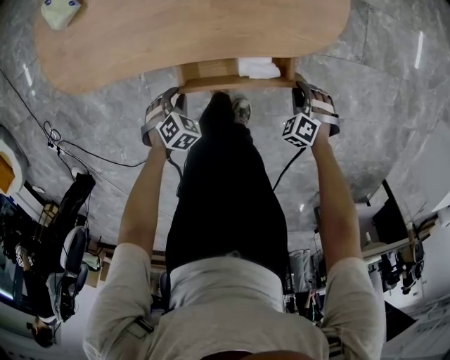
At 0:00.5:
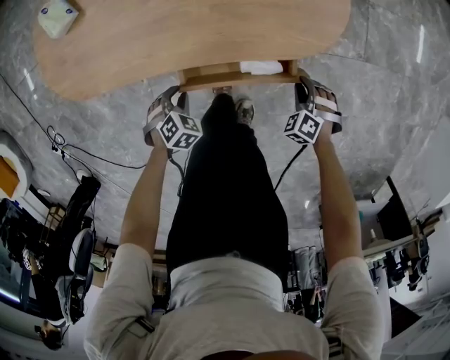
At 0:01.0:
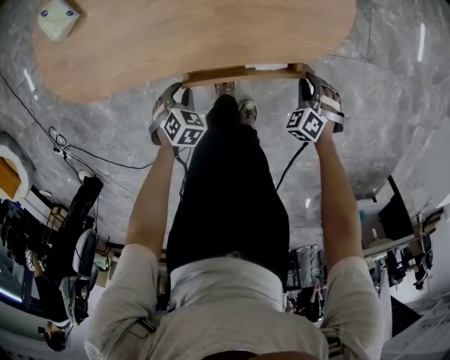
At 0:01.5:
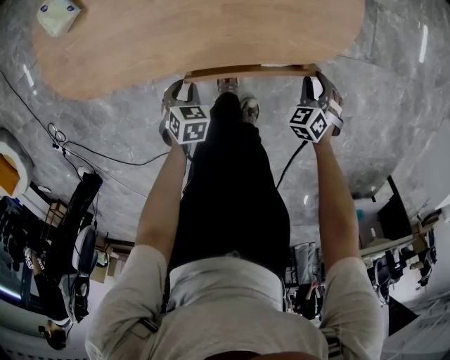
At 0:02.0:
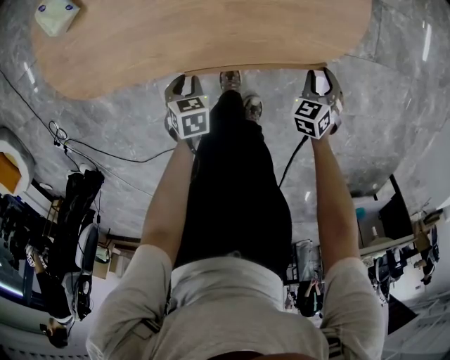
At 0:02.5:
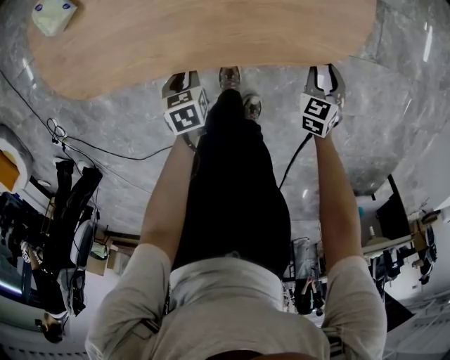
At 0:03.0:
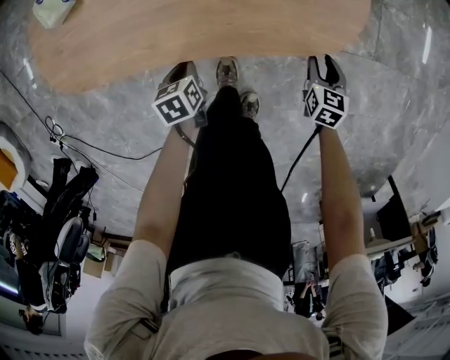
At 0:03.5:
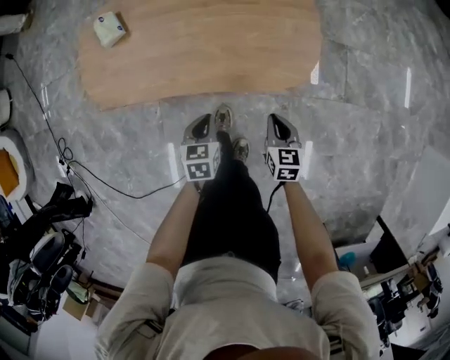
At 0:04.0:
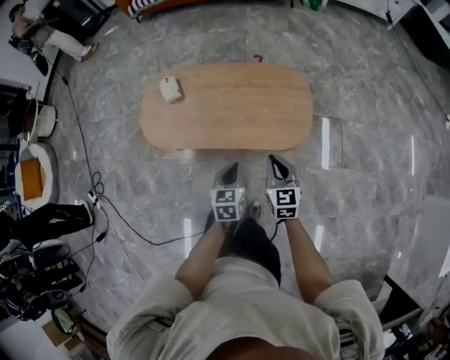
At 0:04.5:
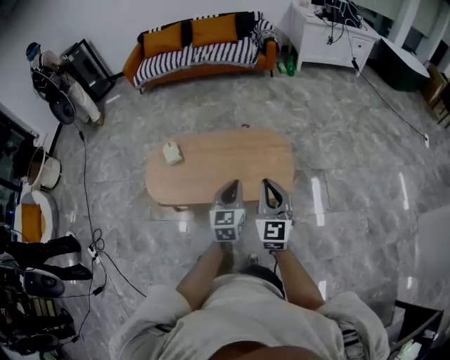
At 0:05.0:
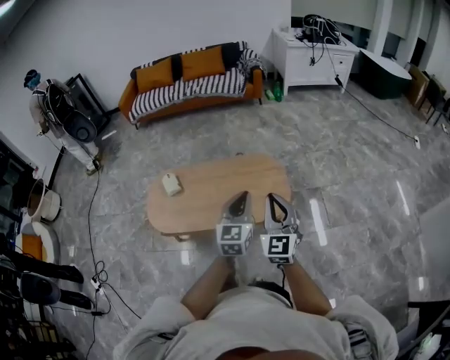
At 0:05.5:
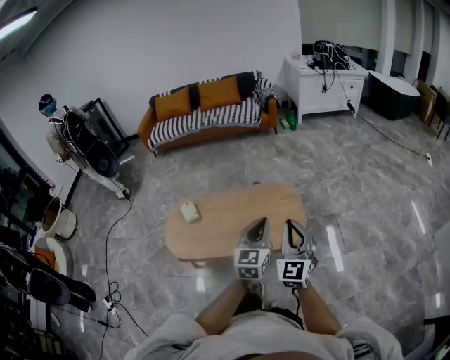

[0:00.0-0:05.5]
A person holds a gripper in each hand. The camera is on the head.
0:00.0 to 0:02.0: The left gripper ends up roughly 5 cm from where it was, and rolls counterclockwise, seen from behind, by roughly 50 degrees. Meanwhile the right gripper changes place by roughly 10 cm, and twists approximately 40 degrees clockwise, seen from behind.
0:02.0 to 0:03.5: The two grippers go roughly 20 cm upward. The left gripper changes its angle by some 20 degrees, and closes its fingers; the right gripper swivels approximately 40 degrees, and closes up.
0:03.5 to 0:05.5: The two grippers go some 50 cm upward. The right gripper angles its fingers upward, by roughly 50 degrees. The left gripper tips its fingers upward by some 50 degrees.

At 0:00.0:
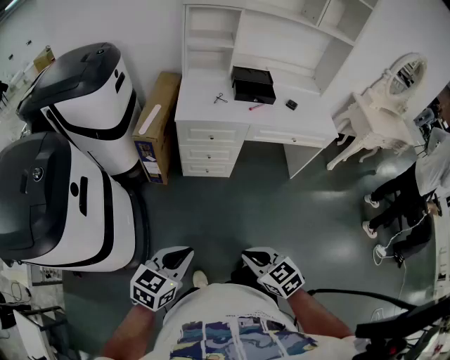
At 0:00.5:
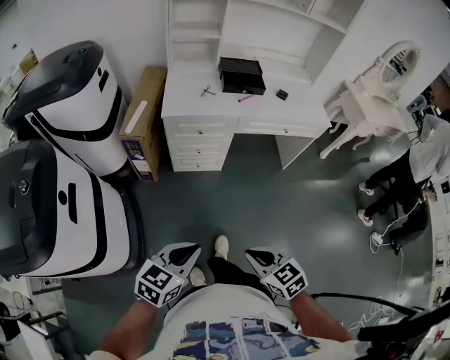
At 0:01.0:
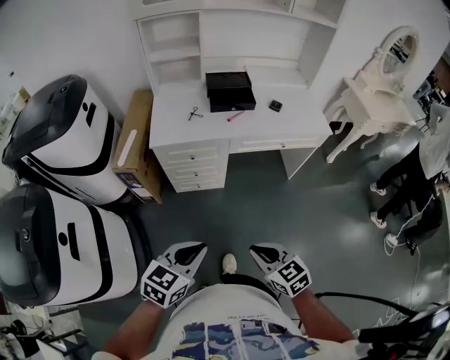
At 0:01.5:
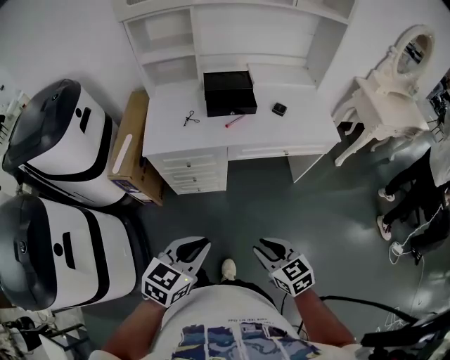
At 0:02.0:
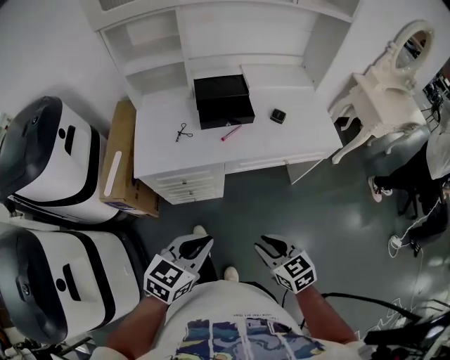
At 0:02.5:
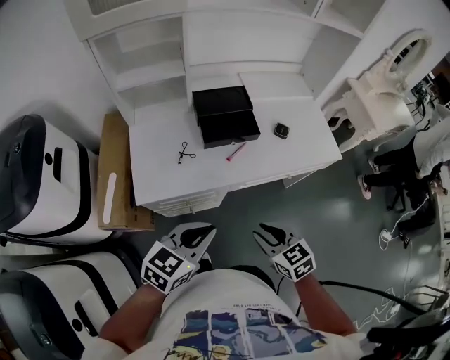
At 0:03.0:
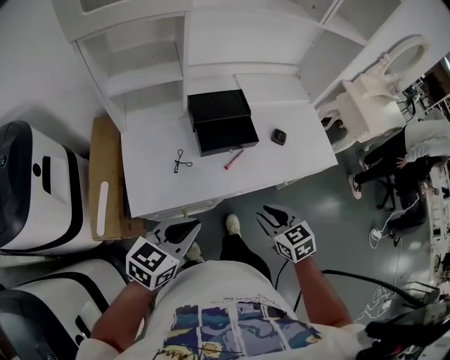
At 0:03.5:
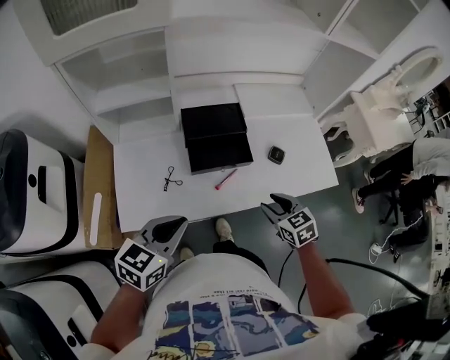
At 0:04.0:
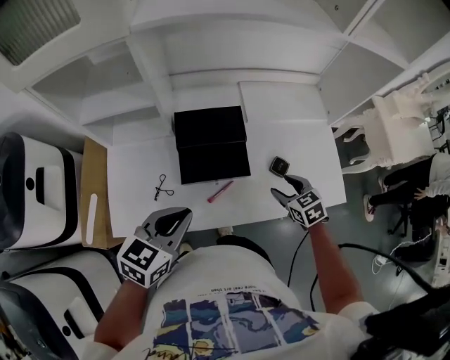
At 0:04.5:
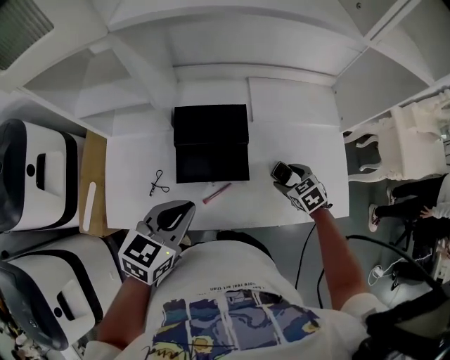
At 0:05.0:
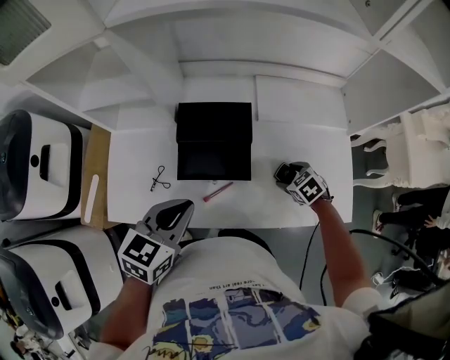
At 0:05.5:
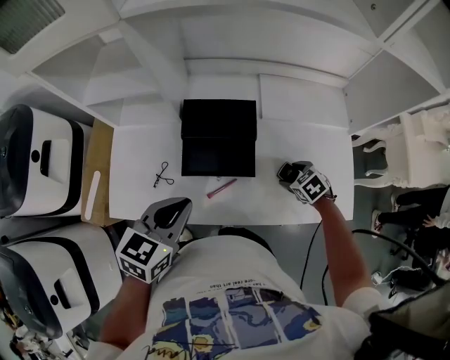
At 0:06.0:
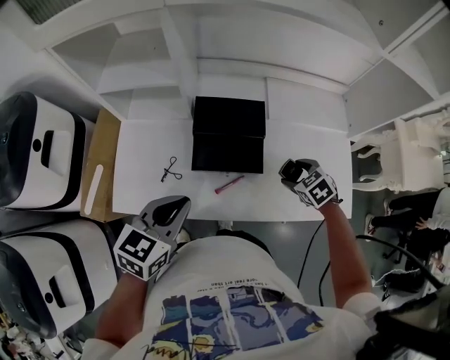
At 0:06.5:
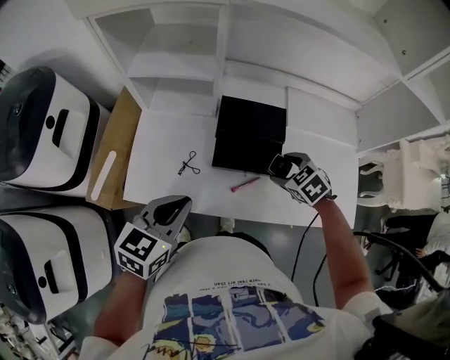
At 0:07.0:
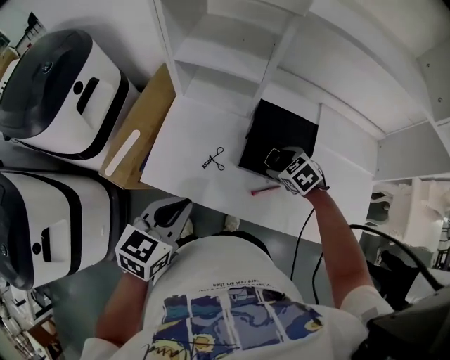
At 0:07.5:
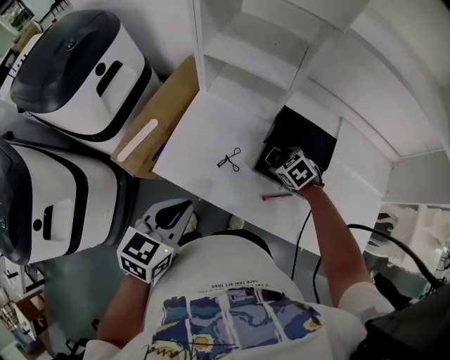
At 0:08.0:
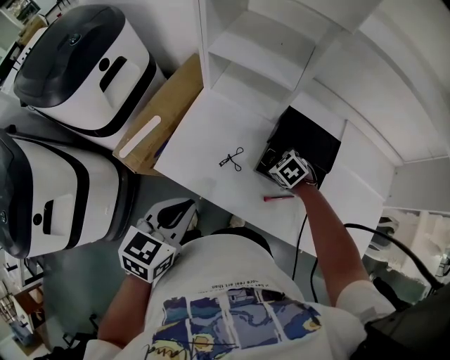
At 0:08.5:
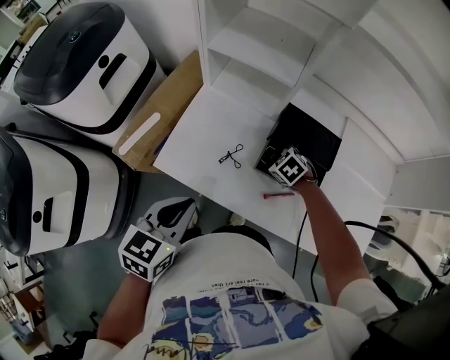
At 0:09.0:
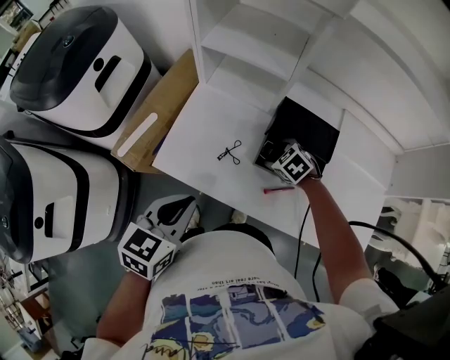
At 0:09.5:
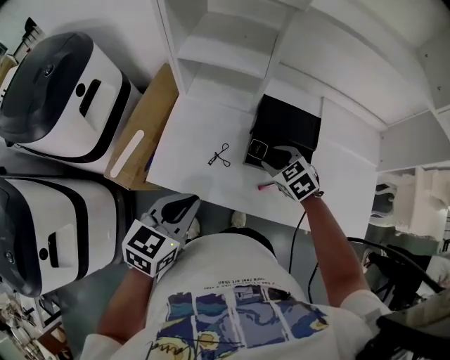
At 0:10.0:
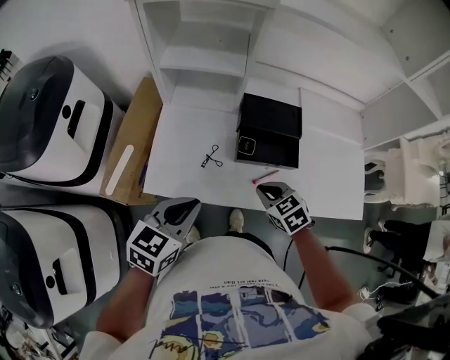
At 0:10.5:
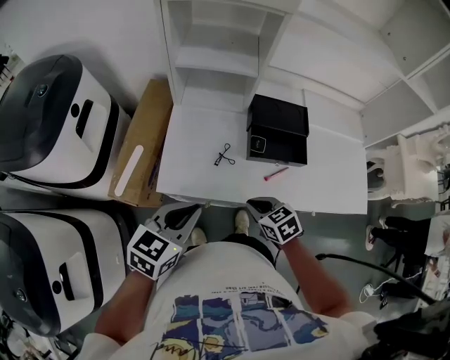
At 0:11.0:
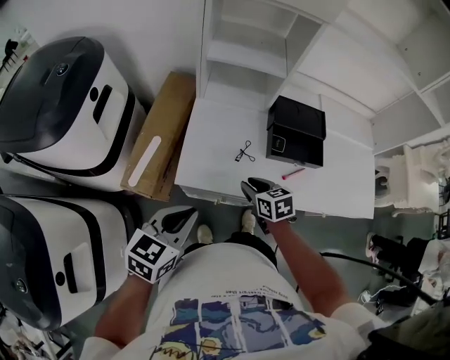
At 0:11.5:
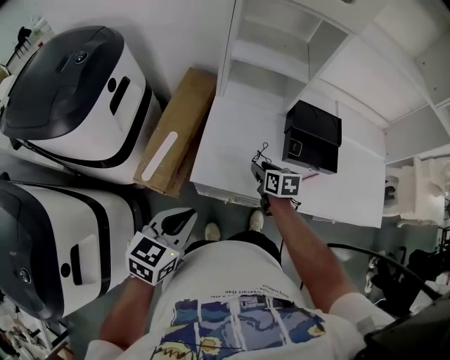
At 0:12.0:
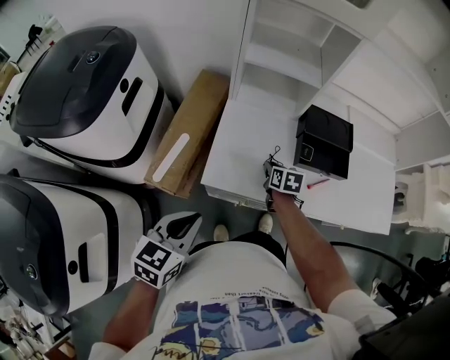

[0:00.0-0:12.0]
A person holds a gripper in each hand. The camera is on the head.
0:00.0 to 0:02.0: The grippers both shift forward and to the right by some 35 cm.
0:02.0 to 0:04.0: The grippers both shift forward by roughly 40 cm. The right gripper opens up.
0:04.0 to 0:06.0: The right gripper moves forward, some 5 cm, travels downward and back again, some 10 cm each way, and rotates approximately 20 degrees.
0:06.0 to 0:08.0: The right gripper moves roughly 30 cm, and changes its angle by some 30 degrees. Meanwhile the left gripper moves about 15 cm, and changes its angle by some 30 degrees.
0:08.0 to 0:10.0: The right gripper changes place by approximately 20 cm, swivels approximately 30 degrees, and closes up. Meanwhile the left gripper rotates about 20 degrees.
0:10.0 to 0:12.0: The right gripper heads to the left, downward and forward, covering about 20 cm, and turns by some 40 degrees. The left gripper heads to the left and backward, covering roughly 20 cm.

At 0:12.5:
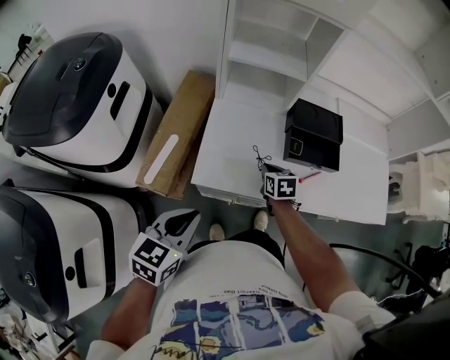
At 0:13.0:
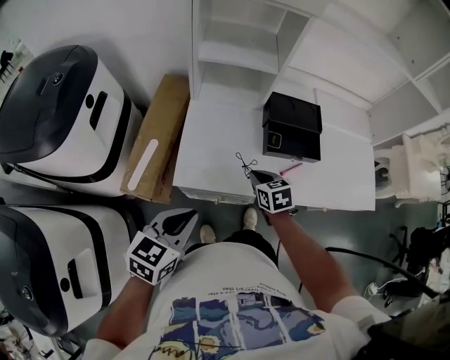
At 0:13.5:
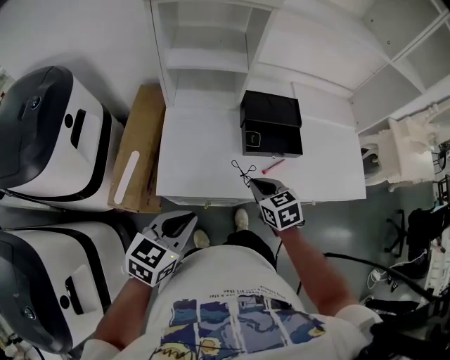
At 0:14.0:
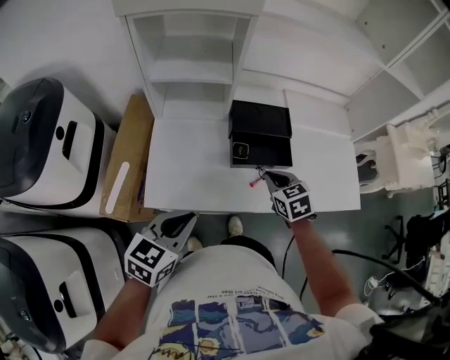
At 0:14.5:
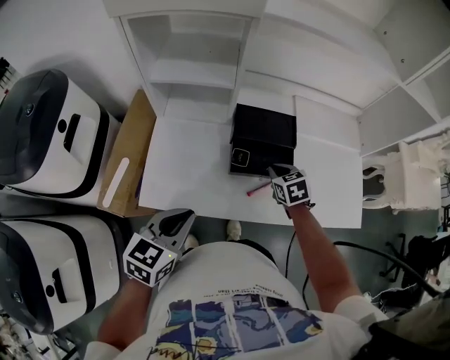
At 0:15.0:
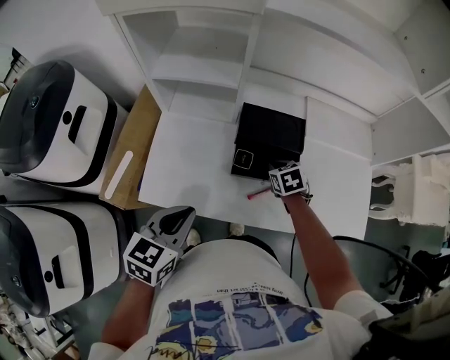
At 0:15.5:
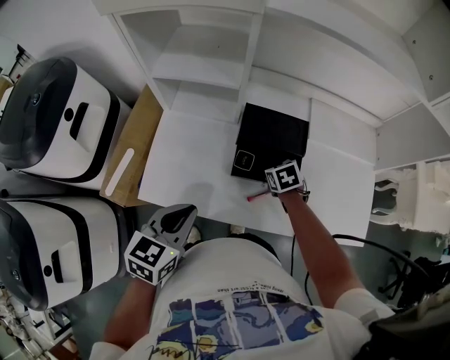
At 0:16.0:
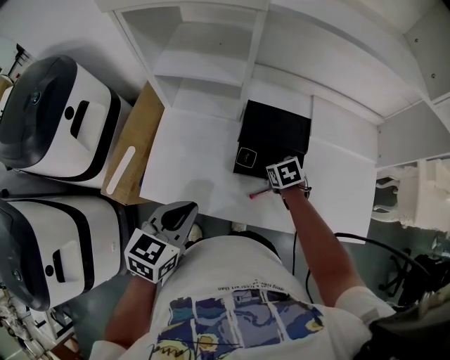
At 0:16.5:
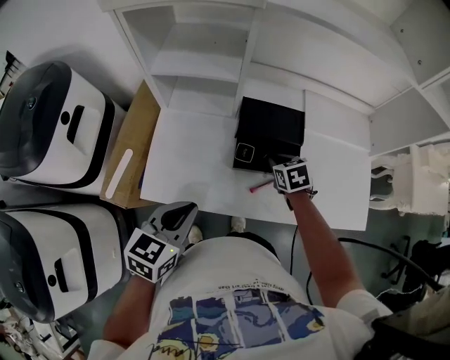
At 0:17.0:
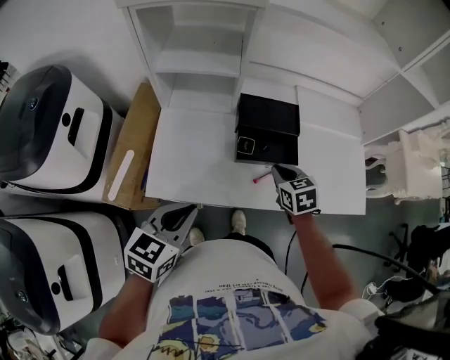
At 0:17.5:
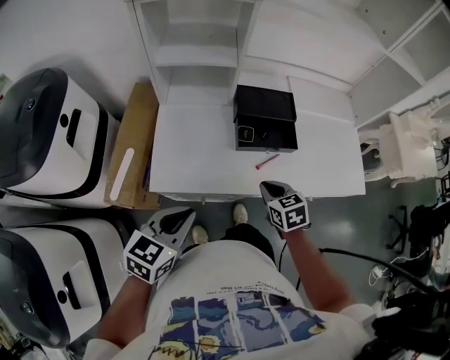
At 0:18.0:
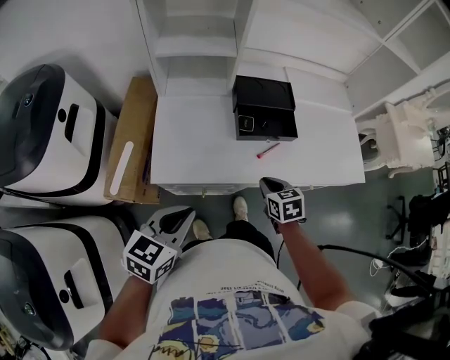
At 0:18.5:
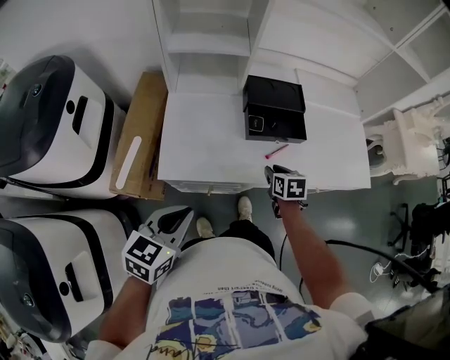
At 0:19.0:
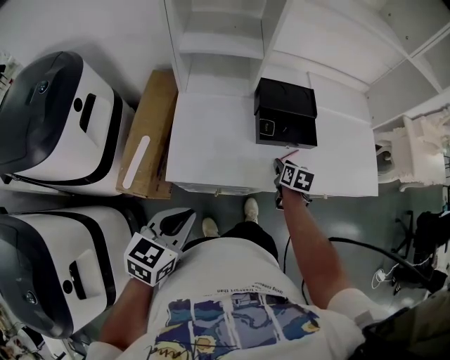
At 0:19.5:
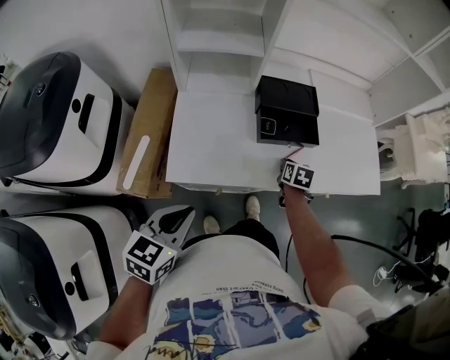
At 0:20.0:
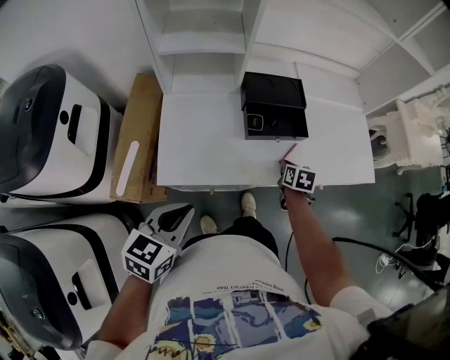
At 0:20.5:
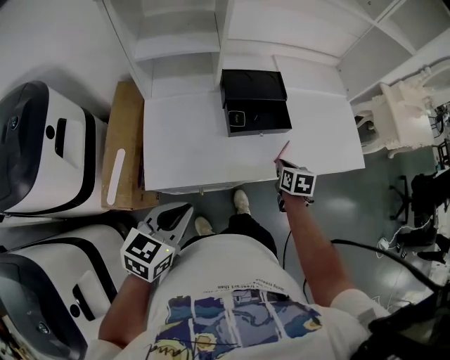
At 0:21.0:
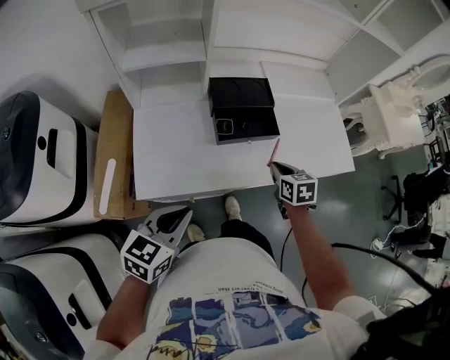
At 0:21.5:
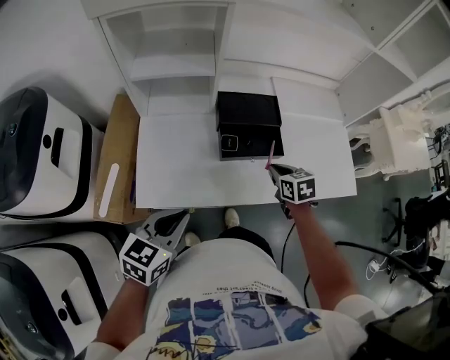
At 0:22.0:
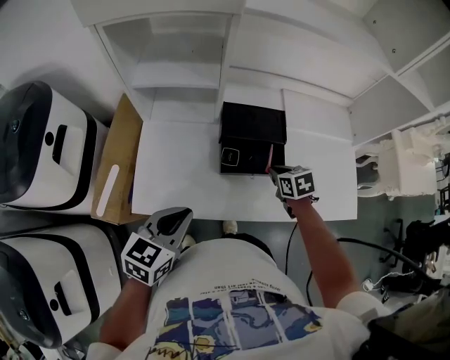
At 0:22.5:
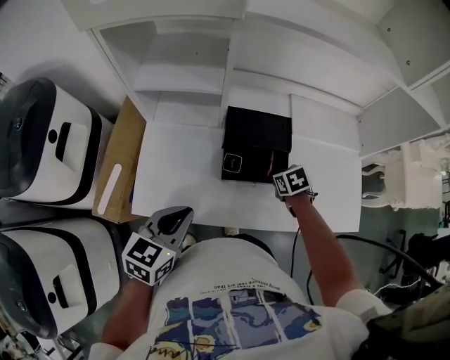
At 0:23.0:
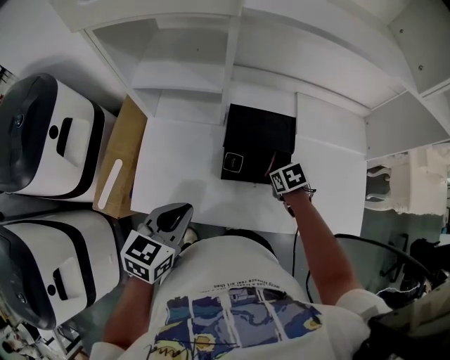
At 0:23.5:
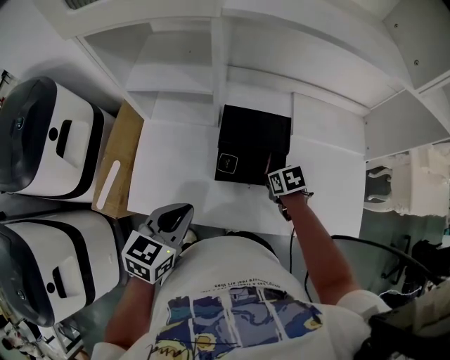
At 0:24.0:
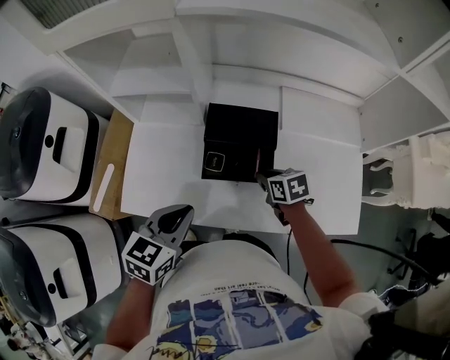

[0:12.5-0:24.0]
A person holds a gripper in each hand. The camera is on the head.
0:12.5 to 0:14.5: The two grippers go roughly 20 cm to the right and forward.
0:16.5 to 0:18.5: The right gripper travels backward by some 15 cm, and turns by approximately 20 degrees. Meanwhile the left gripper is displaced backward and to the left by about 15 cm.
0:18.5 to 0:20.0: The right gripper moves to the right, approximately 5 cm.
0:20.0 to 0:22.0: The right gripper is displaced forward and upward by approximately 10 cm, and turns by some 30 degrees. Meanwhile the left gripper is displaced forward and to the right by about 15 cm.
0:22.0 to 0:24.0: The left gripper travels to the right by roughly 10 cm.
